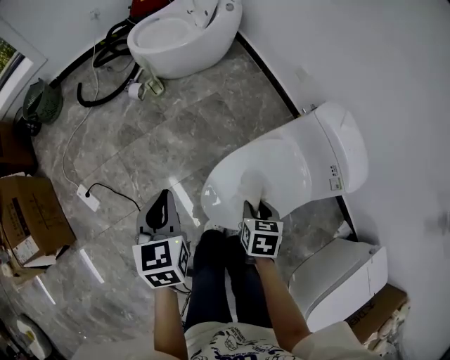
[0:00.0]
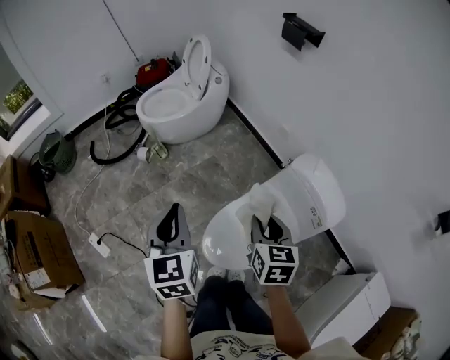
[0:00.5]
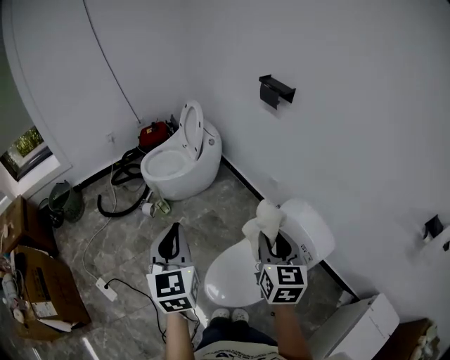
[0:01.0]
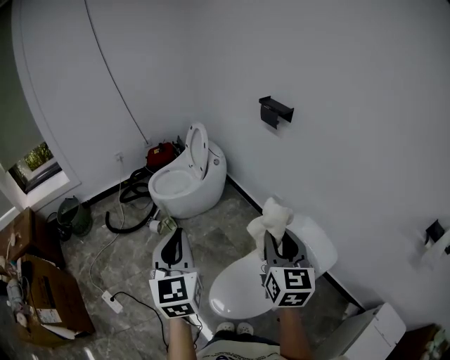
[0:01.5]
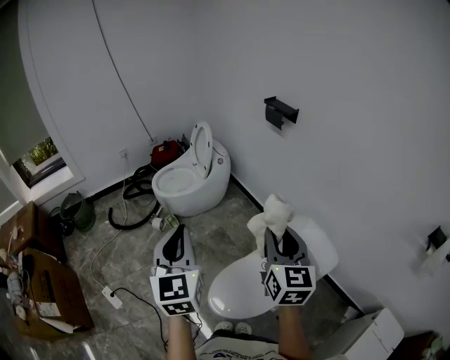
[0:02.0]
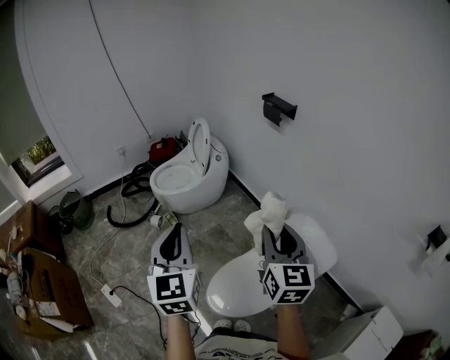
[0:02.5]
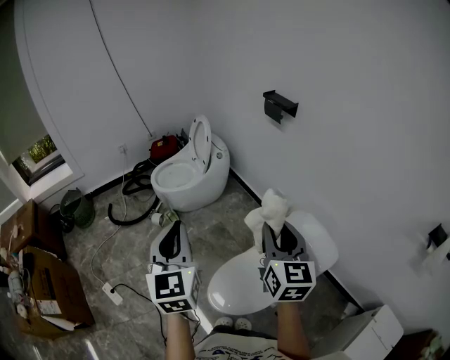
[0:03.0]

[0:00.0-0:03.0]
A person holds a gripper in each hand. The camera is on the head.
0:00.0 to 0:01.5: The two grippers go roughly 40 cm upward. The left gripper tips its fingers upward by some 30 degrees; the right gripper tilts its fingers about 50 degrees upward.
0:01.5 to 0:03.0: There are only small adjustments of the grippers.

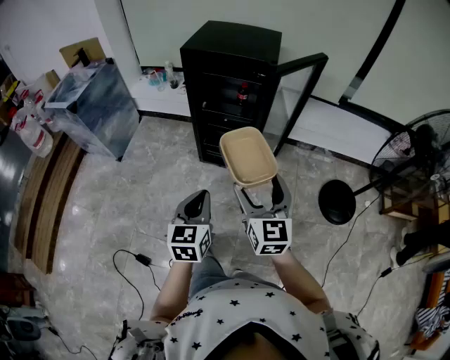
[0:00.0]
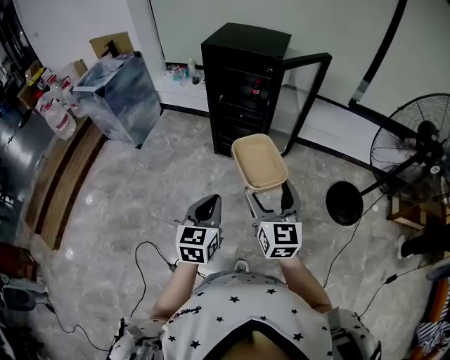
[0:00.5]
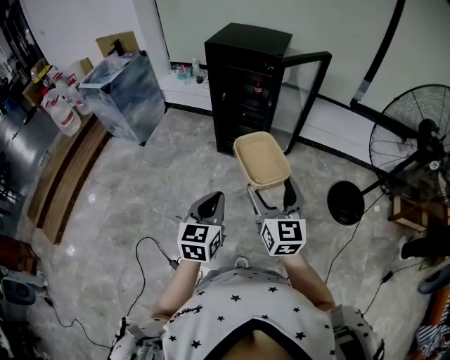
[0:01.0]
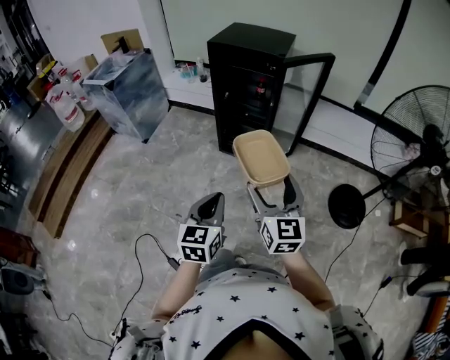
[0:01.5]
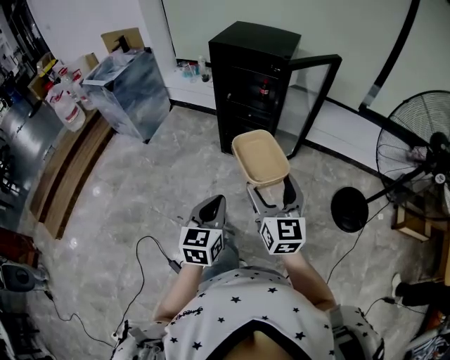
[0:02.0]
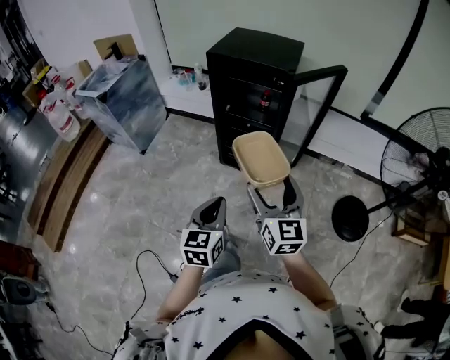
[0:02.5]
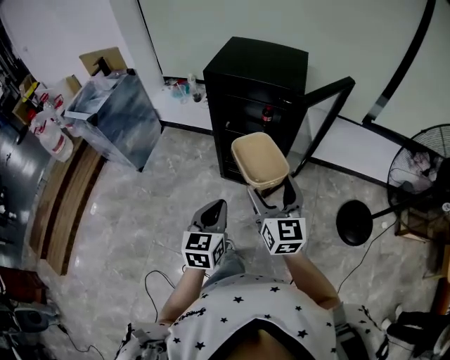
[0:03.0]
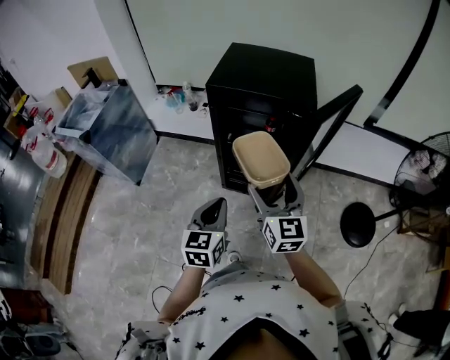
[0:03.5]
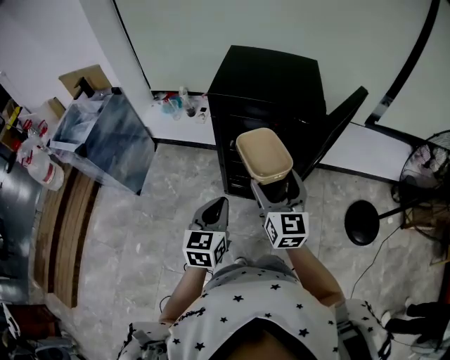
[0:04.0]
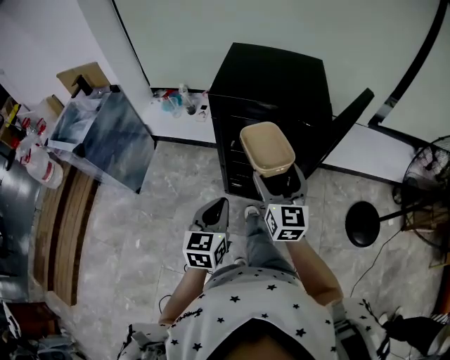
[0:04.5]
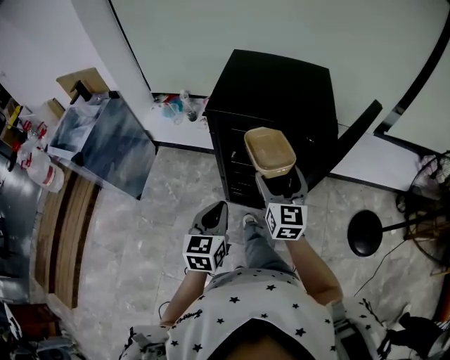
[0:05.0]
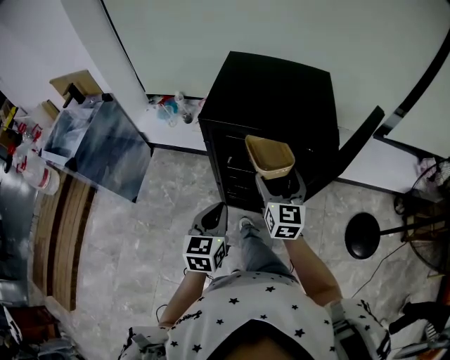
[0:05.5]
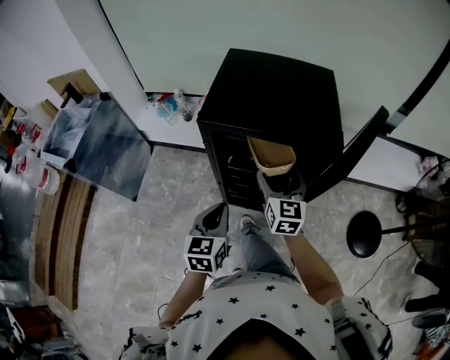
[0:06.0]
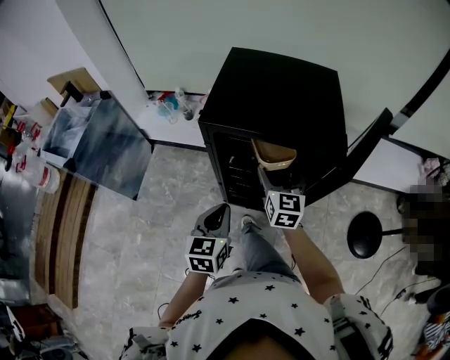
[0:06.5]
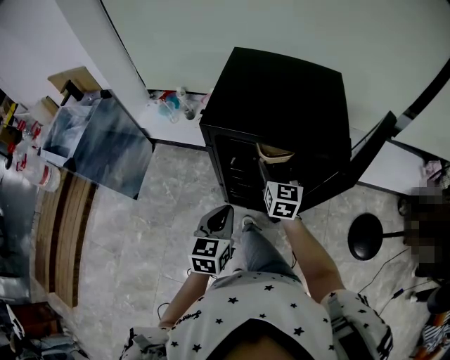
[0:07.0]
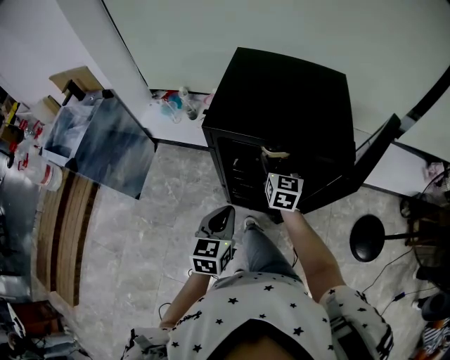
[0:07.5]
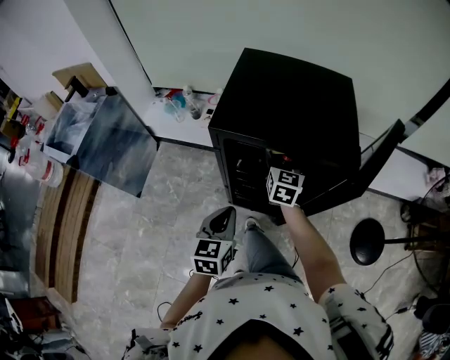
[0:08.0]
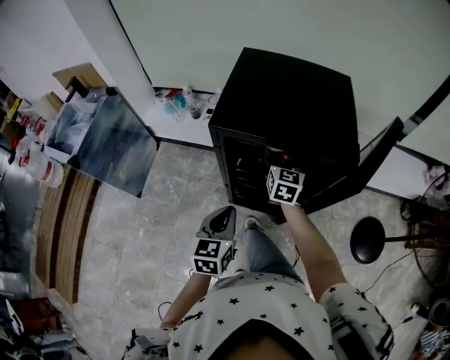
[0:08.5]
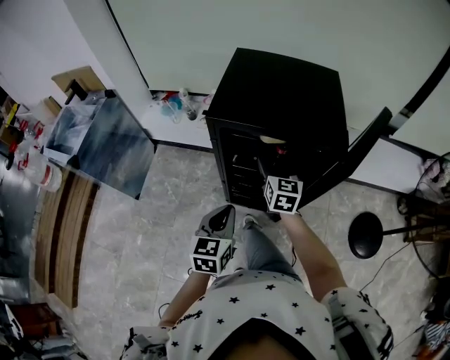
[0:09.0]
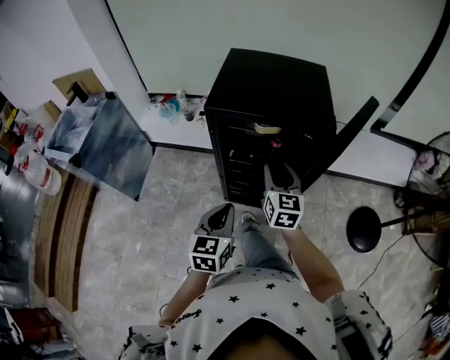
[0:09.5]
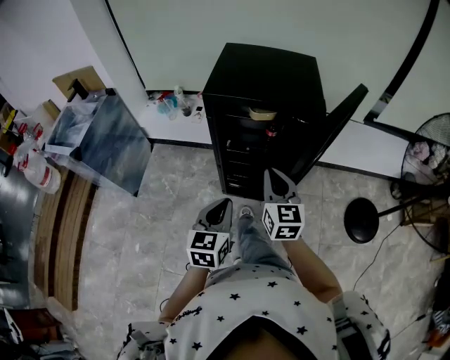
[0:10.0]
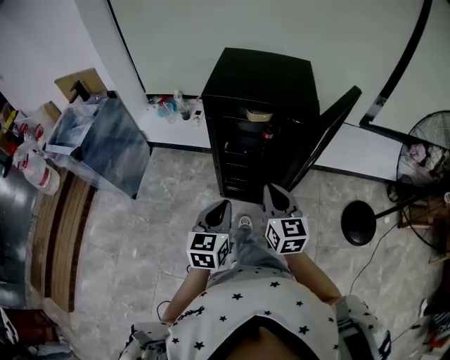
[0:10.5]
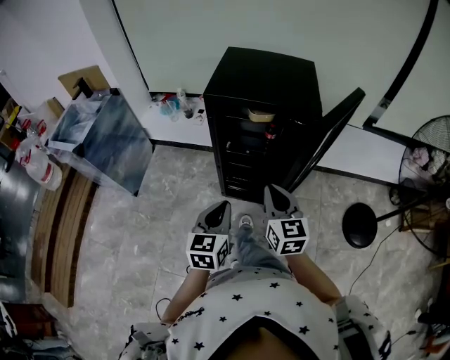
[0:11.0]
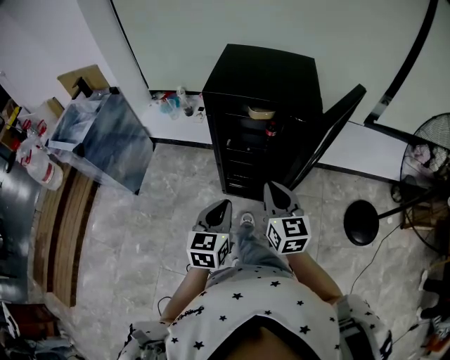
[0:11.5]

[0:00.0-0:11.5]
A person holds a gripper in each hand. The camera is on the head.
0:00.0 to 0:02.0: The two grippers go some 15 cm backward.
0:02.0 to 0:04.0: Both grippers move forward, some 35 cm.
0:04.0 to 0:06.0: The right gripper goes approximately 20 cm forward and downward, while the left gripper is displaced forward by roughly 15 cm.
0:06.0 to 0:07.5: The right gripper is displaced forward by approximately 10 cm.
0:07.5 to 0:09.5: The right gripper goes roughly 15 cm backward, and closes. The left gripper moves backward, some 10 cm.
0:09.5 to 0:11.5: The left gripper moves backward, approximately 5 cm, while the right gripper is displaced backward by some 15 cm, and closes its fingers.

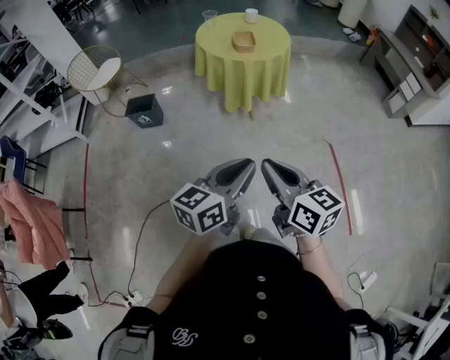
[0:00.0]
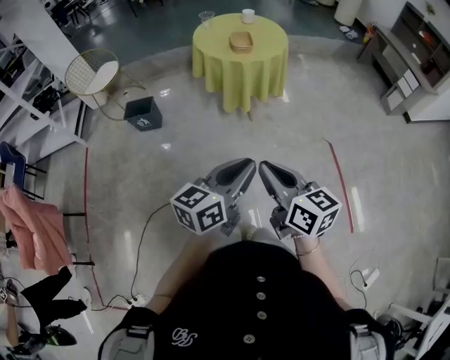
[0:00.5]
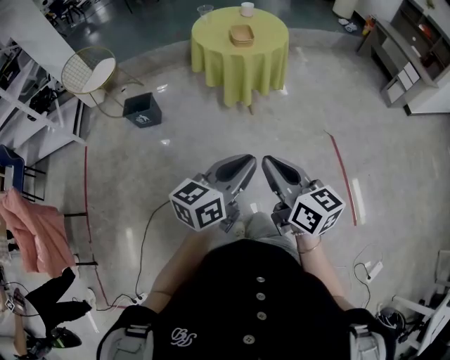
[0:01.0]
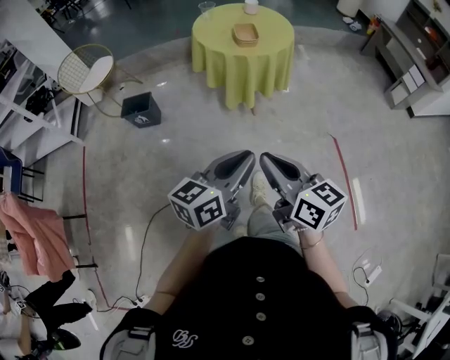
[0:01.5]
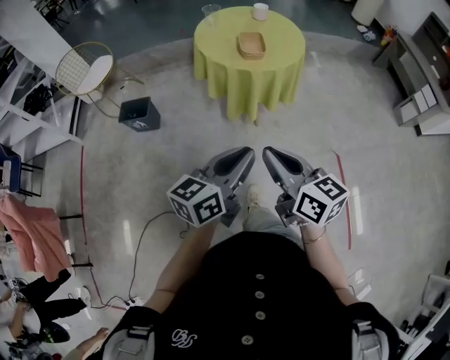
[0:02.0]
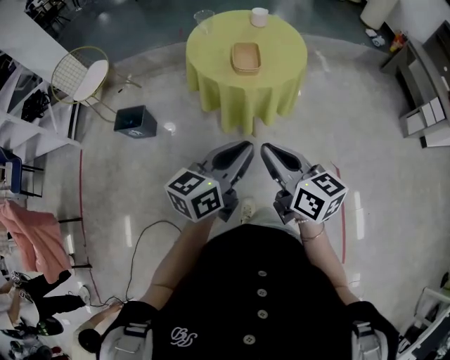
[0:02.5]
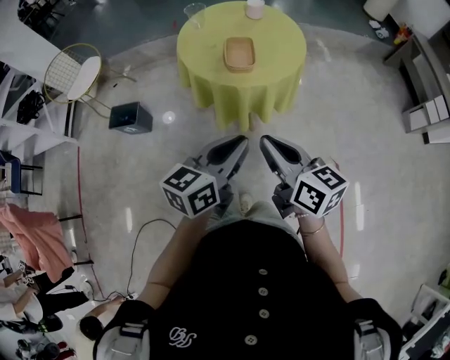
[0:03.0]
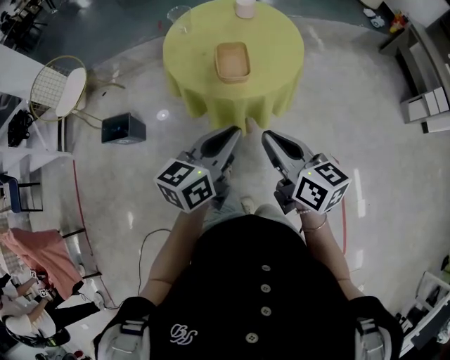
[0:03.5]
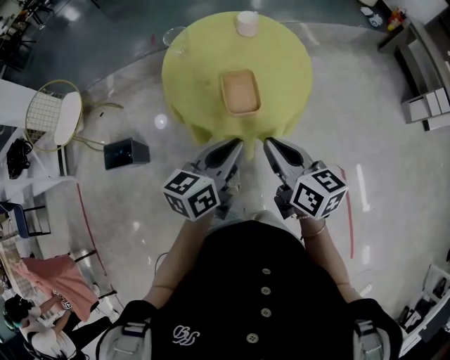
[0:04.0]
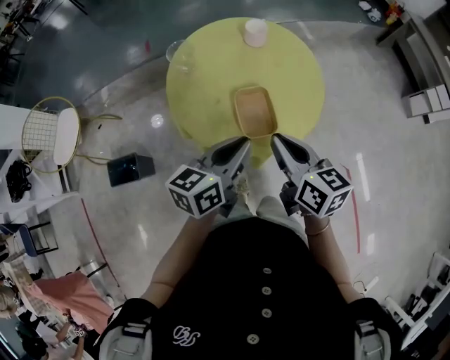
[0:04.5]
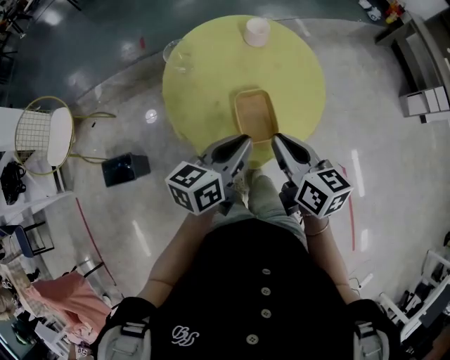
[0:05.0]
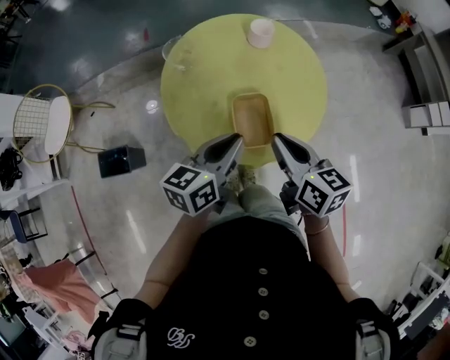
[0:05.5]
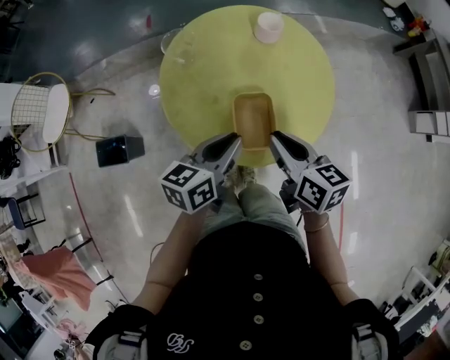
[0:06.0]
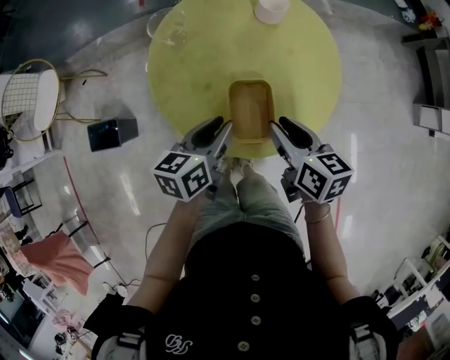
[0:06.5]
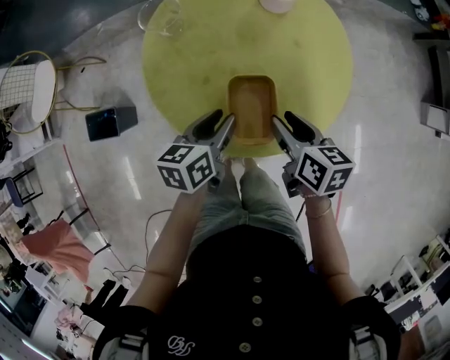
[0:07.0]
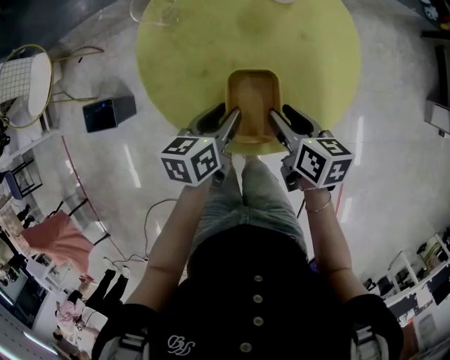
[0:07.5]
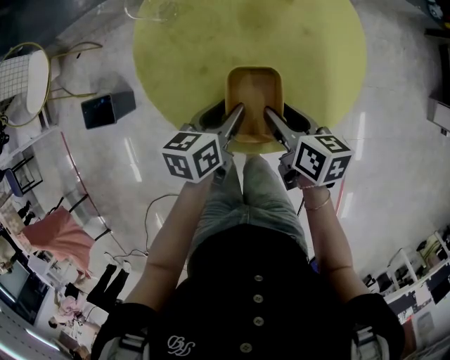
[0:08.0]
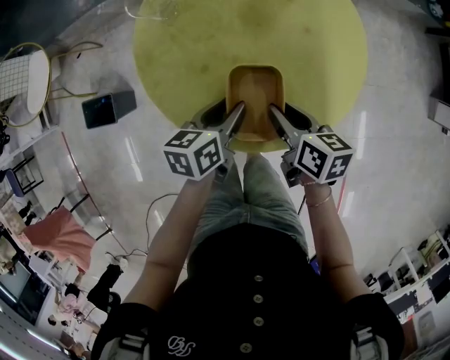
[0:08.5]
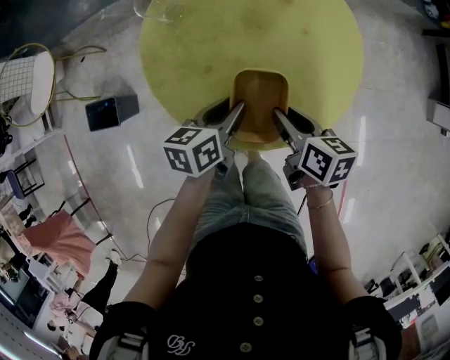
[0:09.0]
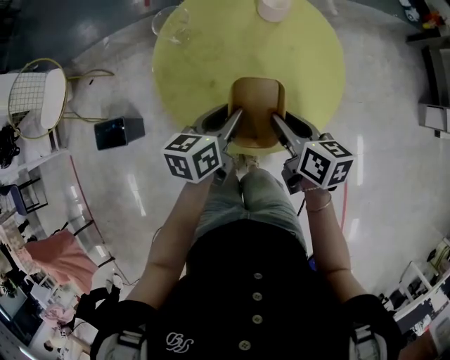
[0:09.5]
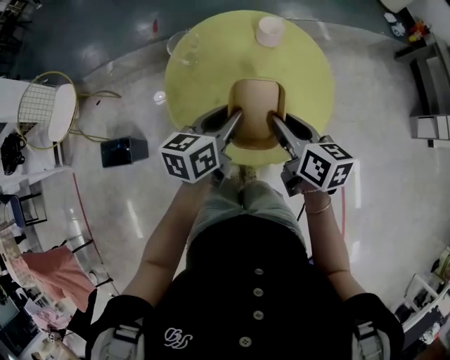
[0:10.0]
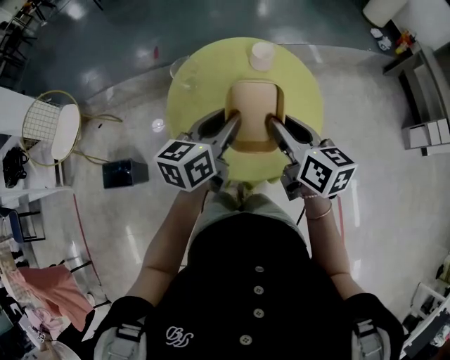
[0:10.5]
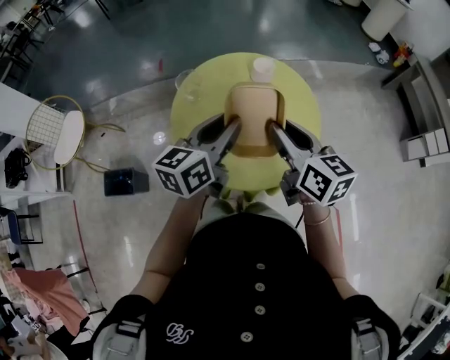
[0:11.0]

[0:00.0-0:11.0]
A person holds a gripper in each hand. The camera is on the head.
0:00.0 to 0:02.0: The two grippers go about 20 cm forward.
0:02.0 to 0:03.5: The two grippers go about 25 cm forward.
0:03.5 to 0:05.5: Both grippers travel together forward, roughly 25 cm.
0:05.5 to 0:07.5: Both grippers travel together downward, roughly 15 cm. The left gripper changes its angle by approximately 30 degrees, and opens up. The right gripper turns by approximately 20 degrees, and opens its fingers.
0:07.5 to 0:09.0: The grippers stay close to where they were, moving slightly.
0:09.0 to 0:11.0: The grippers both shift upward by some 25 cm. The left gripper changes its angle by roughly 30 degrees. The right gripper changes its angle by approximately 30 degrees.

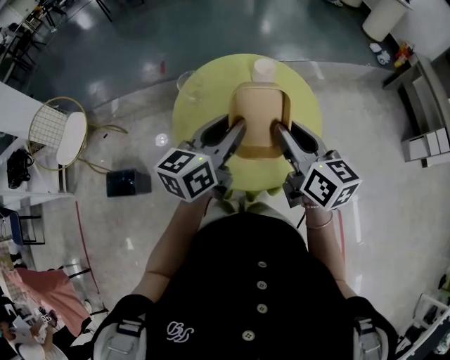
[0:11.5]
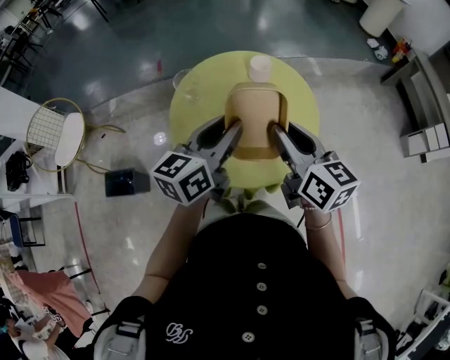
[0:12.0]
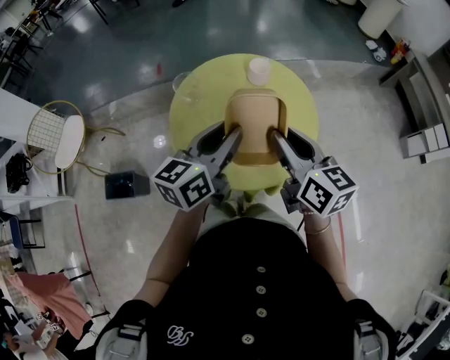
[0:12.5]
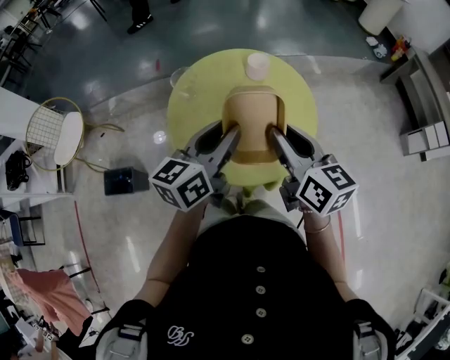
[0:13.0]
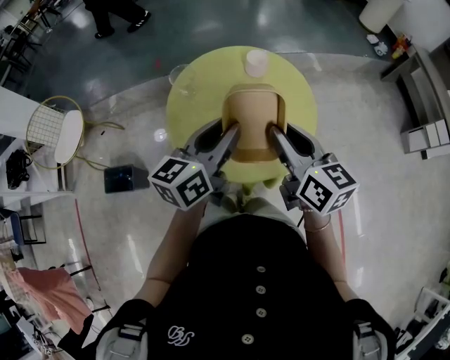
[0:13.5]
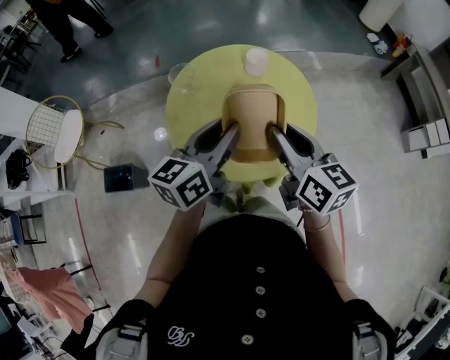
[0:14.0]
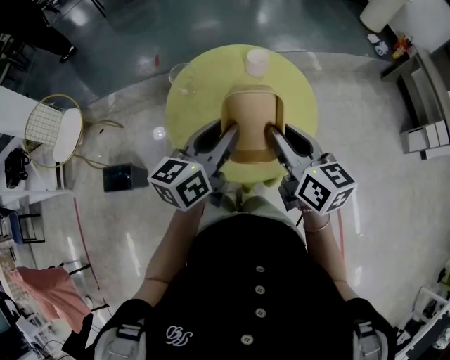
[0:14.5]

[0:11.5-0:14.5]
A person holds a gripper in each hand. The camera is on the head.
0:11.5 to 0:13.0: The grippers make only small movements.
0:13.0 to 0:14.5: Both grippers stay about where they are.
